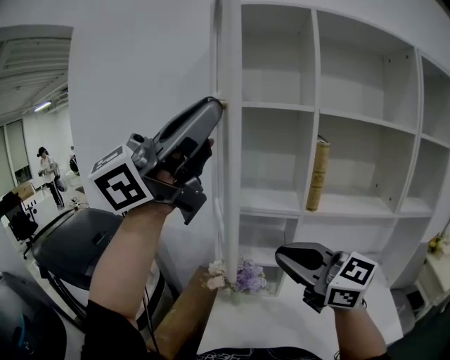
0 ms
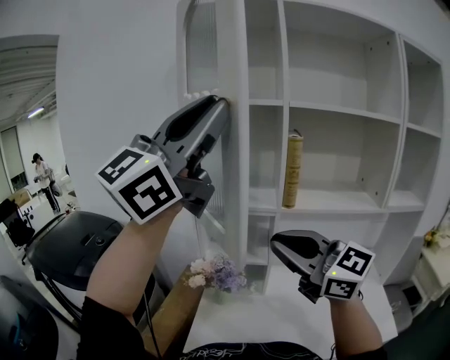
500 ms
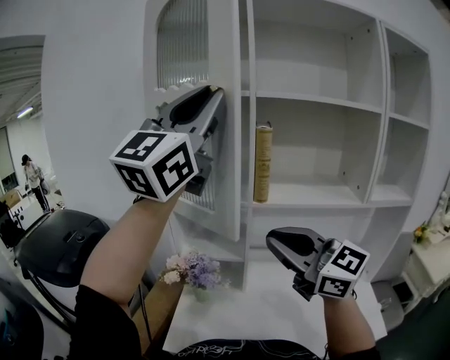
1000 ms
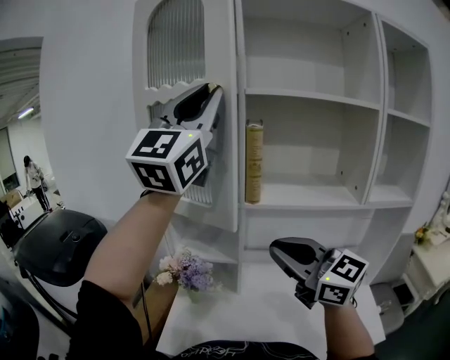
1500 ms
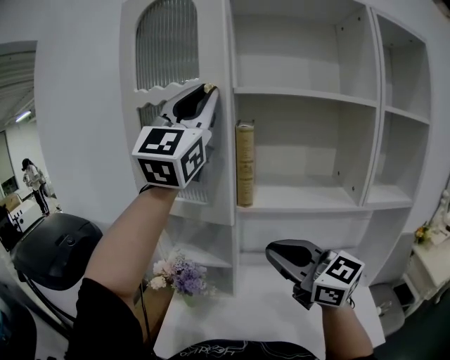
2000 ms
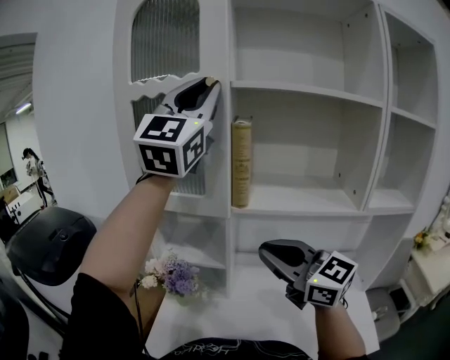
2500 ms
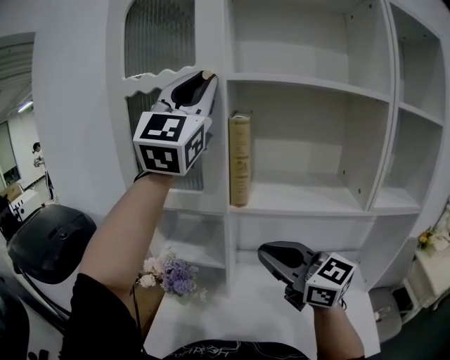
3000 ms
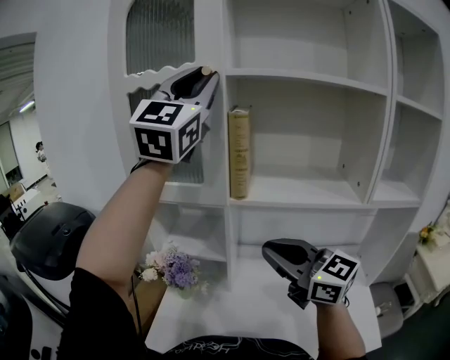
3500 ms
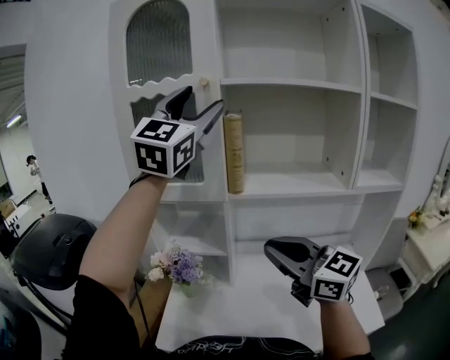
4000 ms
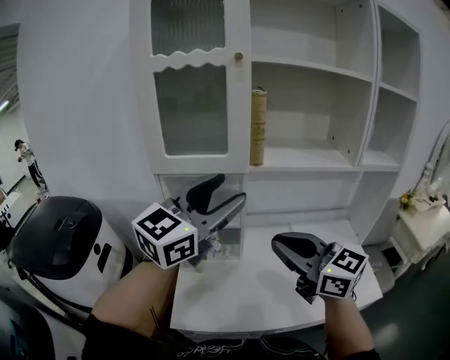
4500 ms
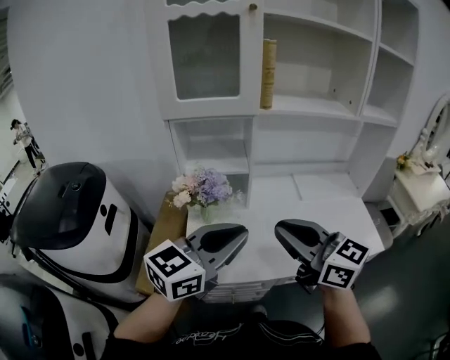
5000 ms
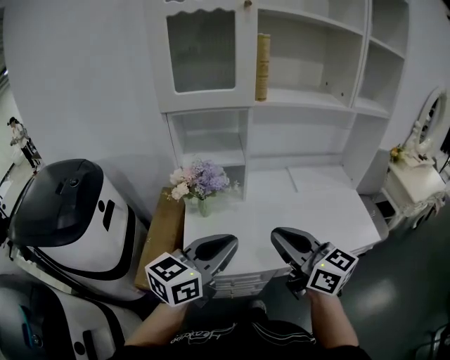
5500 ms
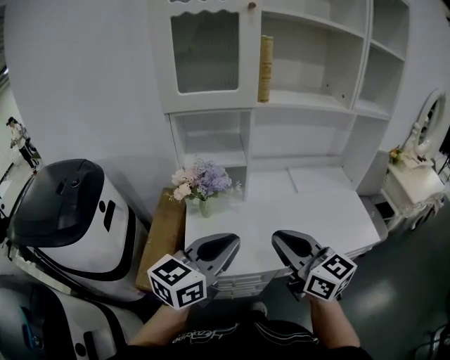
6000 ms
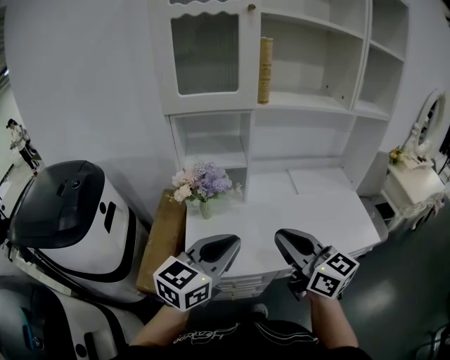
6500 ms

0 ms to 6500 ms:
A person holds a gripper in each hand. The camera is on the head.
0 ms to 2000 ms: The left gripper moves some 25 cm, and rotates roughly 50 degrees; the right gripper changes place by some 20 cm.
2000 ms to 4500 ms: The right gripper shifts some 10 cm to the left and backward; the left gripper shifts approximately 25 cm downward and backward, rotates approximately 40 degrees, and opens its fingers.
4500 ms to 6500 ms: The right gripper is displaced backward and downward by approximately 20 cm; the left gripper moves downward and backward, about 30 cm, swivels about 20 degrees, and closes up.

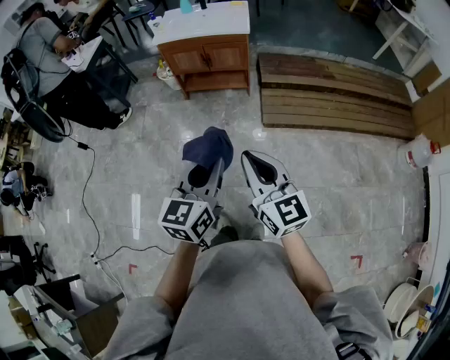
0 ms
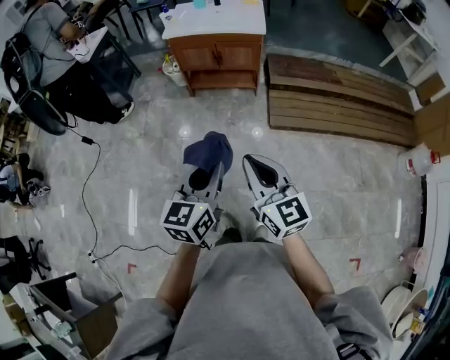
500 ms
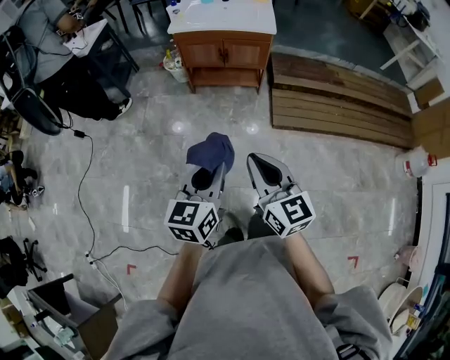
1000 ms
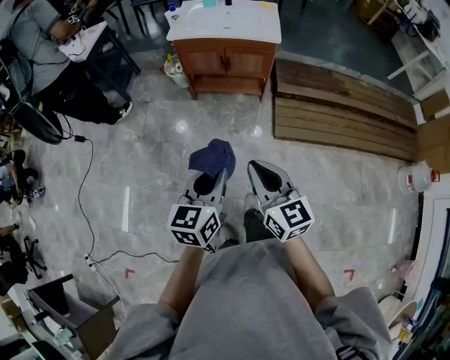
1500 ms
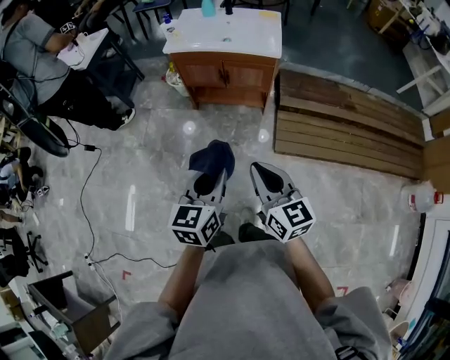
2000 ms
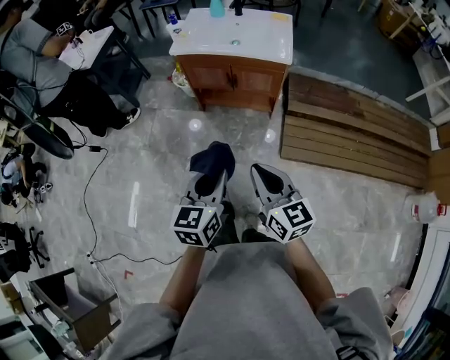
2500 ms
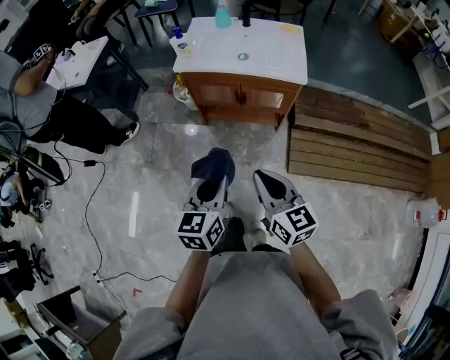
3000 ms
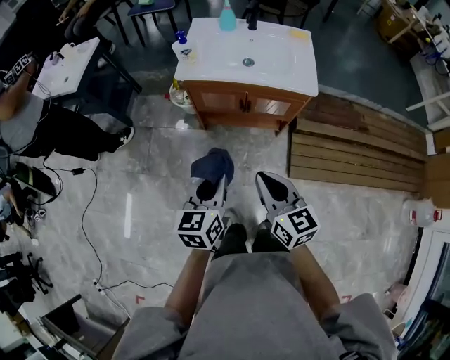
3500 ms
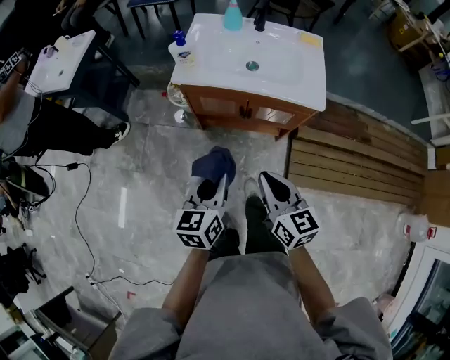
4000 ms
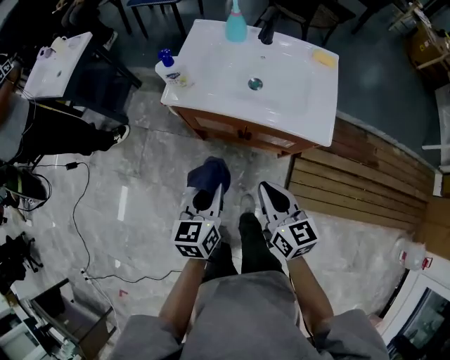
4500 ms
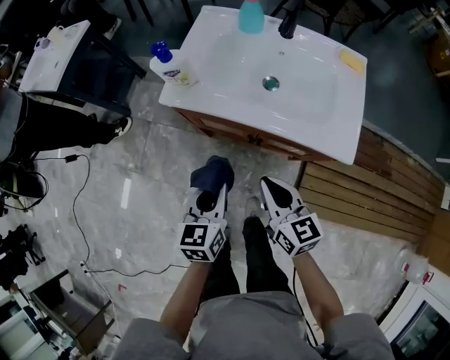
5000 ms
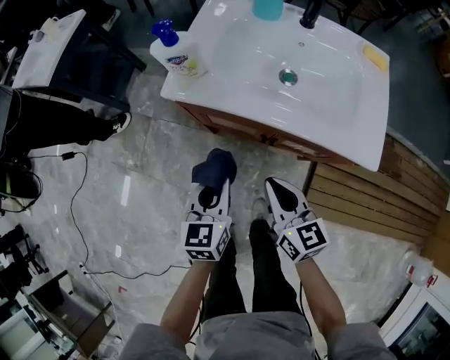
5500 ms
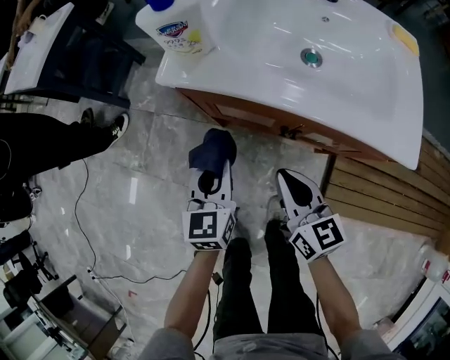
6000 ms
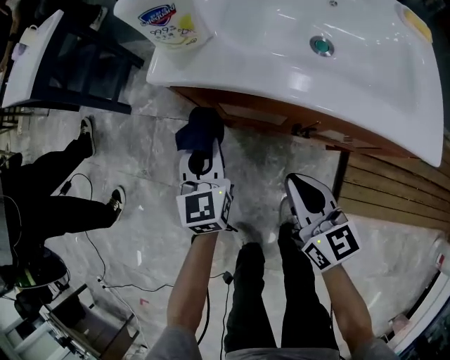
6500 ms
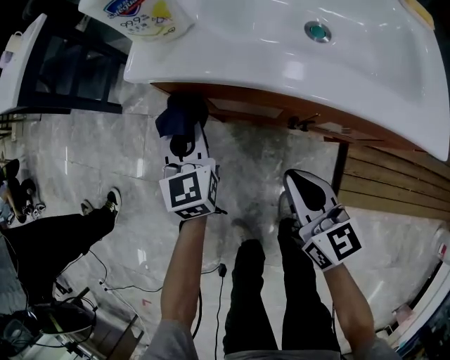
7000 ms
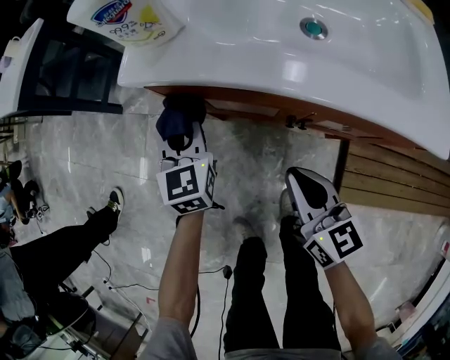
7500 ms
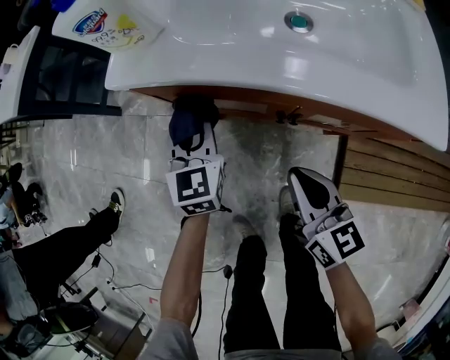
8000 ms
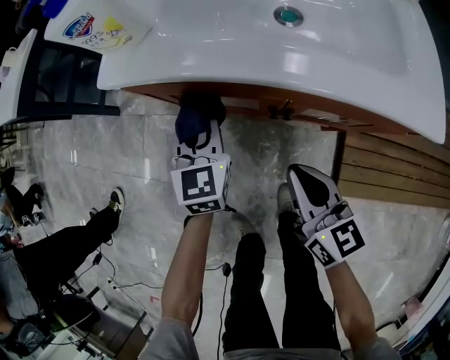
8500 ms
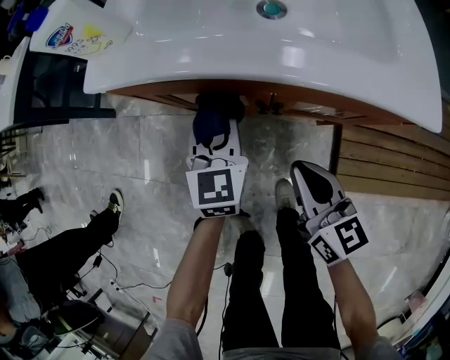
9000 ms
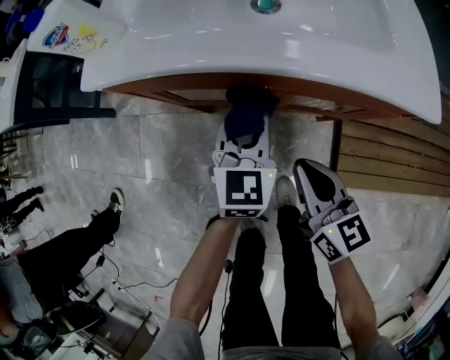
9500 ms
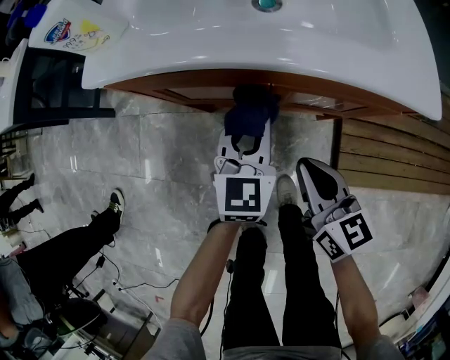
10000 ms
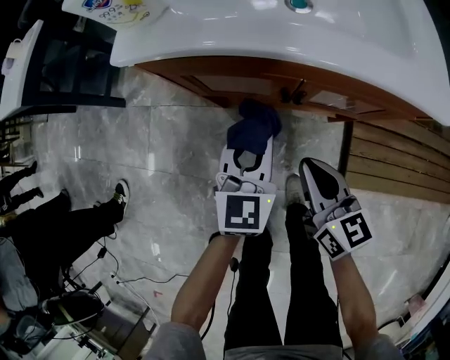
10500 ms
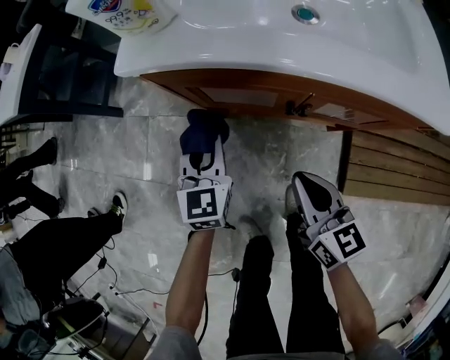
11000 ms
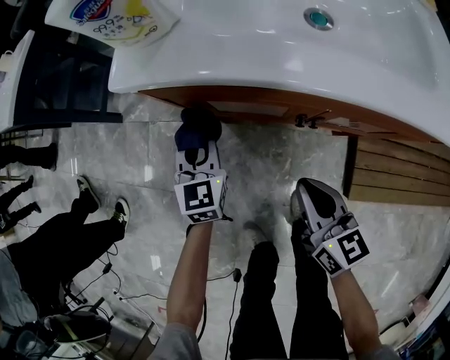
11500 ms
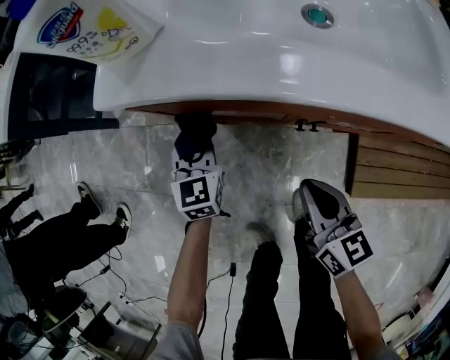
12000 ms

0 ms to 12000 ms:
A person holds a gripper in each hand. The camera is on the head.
0 ms to 2000 ms: Both grippers move forward, approximately 25 cm.
2000 ms to 4000 ms: The two grippers go some 35 cm forward.
4000 ms to 6000 ms: The grippers both shift downward and forward by roughly 30 cm.
6000 ms to 8000 ms: The right gripper moves downward, about 5 cm, while the left gripper is displaced forward and downward by approximately 10 cm.
8000 ms to 10000 ms: The right gripper is displaced to the right by about 5 cm, while the left gripper shifts approximately 20 cm to the right and backward.
10000 ms to 12000 ms: The right gripper heads to the left, covering approximately 5 cm. The left gripper is displaced to the left, downward and forward by approximately 25 cm.

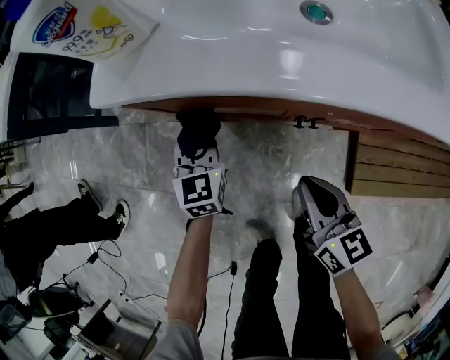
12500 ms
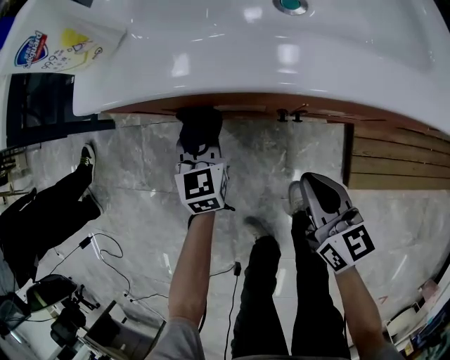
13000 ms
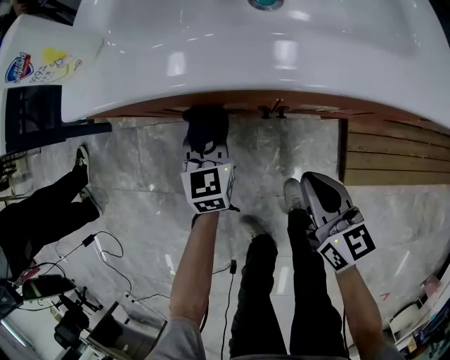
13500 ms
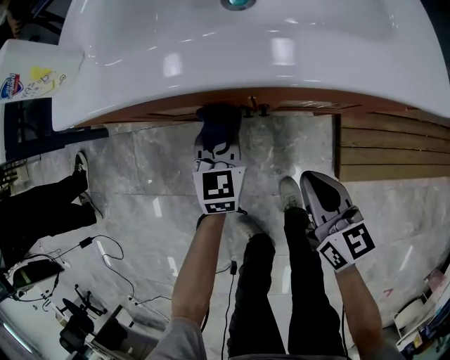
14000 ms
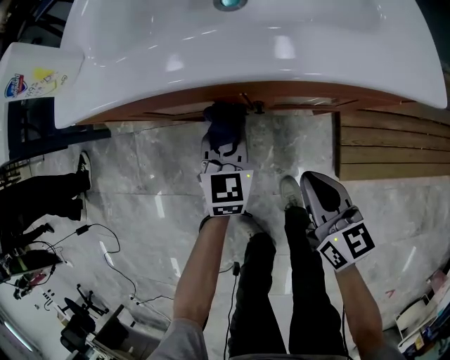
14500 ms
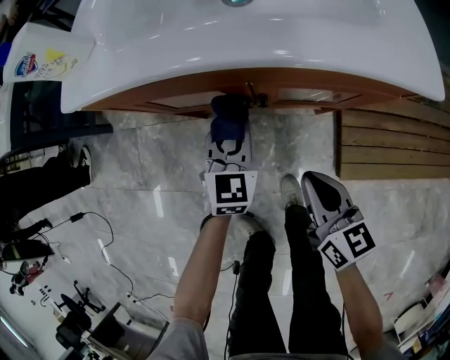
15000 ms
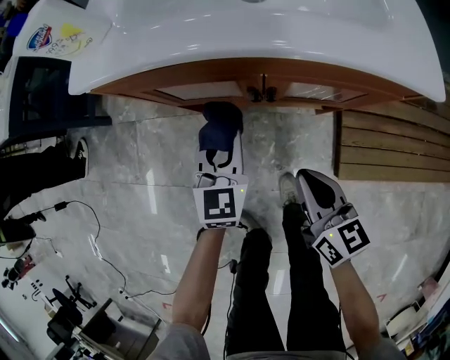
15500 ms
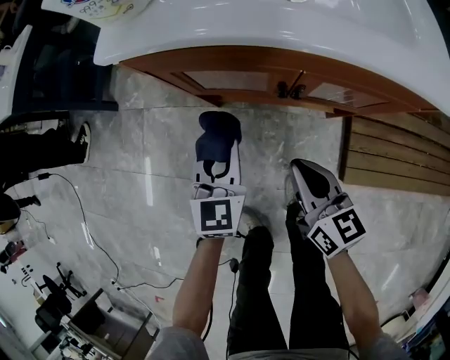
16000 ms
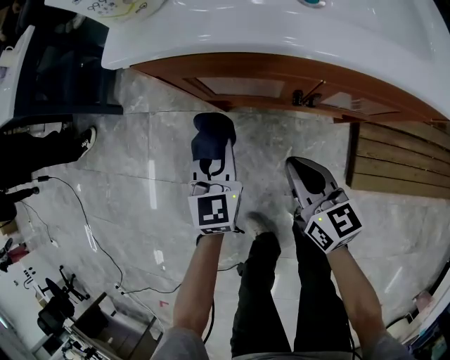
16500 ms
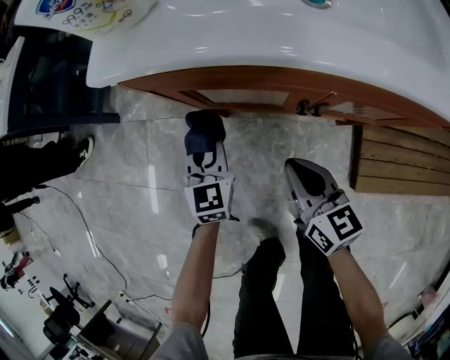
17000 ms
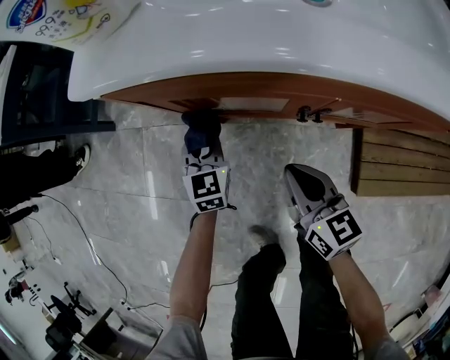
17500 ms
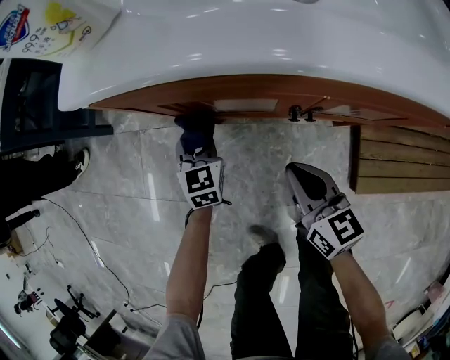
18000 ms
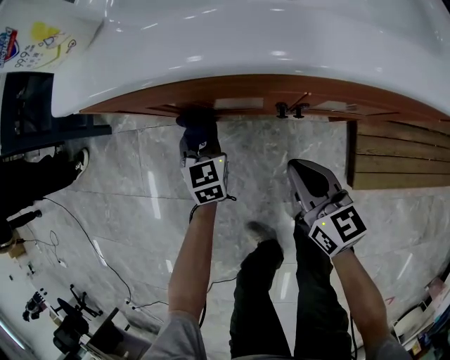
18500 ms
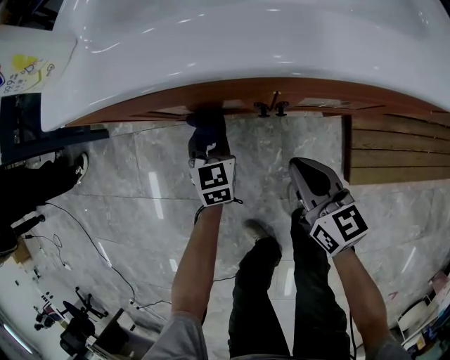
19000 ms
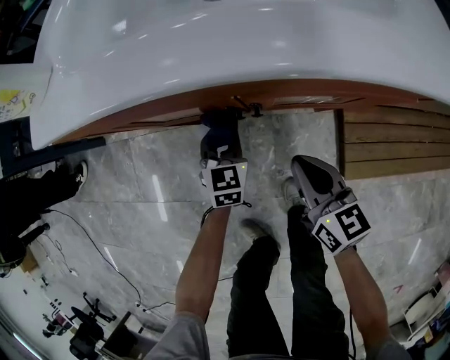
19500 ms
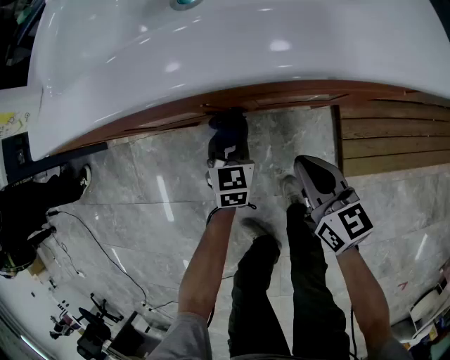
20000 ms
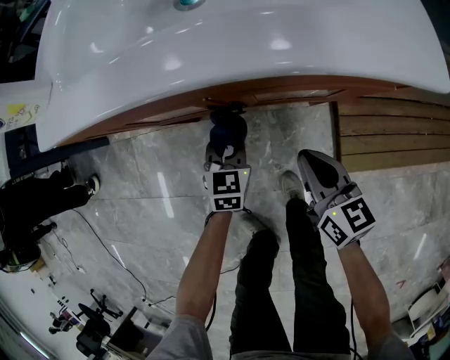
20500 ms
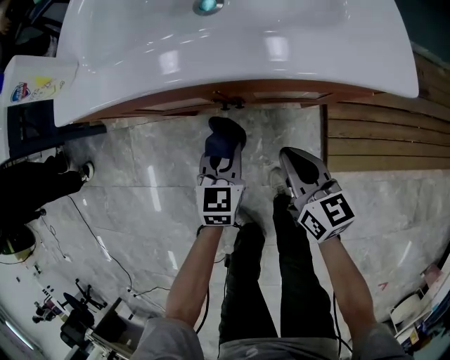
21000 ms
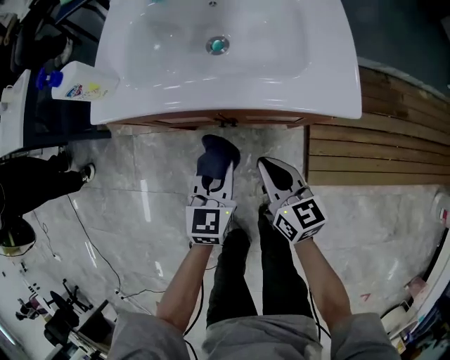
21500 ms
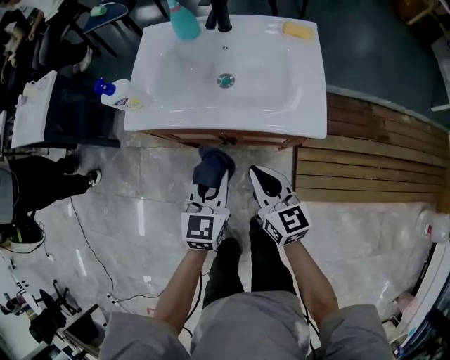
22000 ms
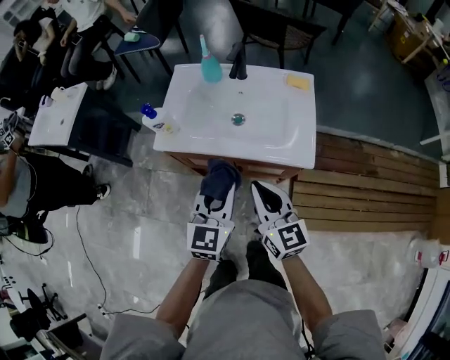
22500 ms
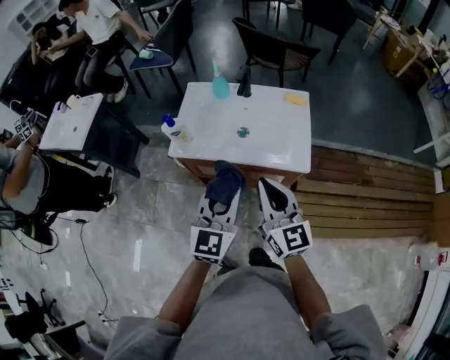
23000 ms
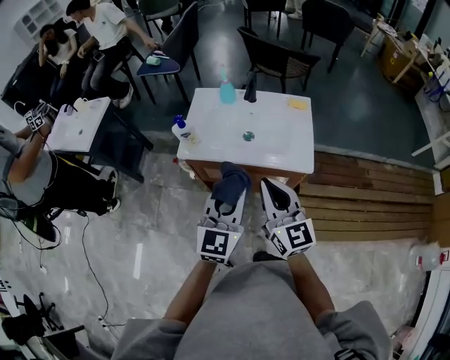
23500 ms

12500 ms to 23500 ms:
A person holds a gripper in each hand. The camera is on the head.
12500 ms to 14500 ms: The left gripper heads to the right, covering approximately 20 cm. The right gripper moves to the right and backward, roughly 10 cm.
14500 ms to 16000 ms: The left gripper travels to the left and backward by roughly 15 cm; the right gripper is displaced to the left by roughly 10 cm.
16000 ms to 18000 ms: The right gripper heads downward and forward, covering about 10 cm. Meanwhile the left gripper moves downward and forward, about 20 cm.
18000 ms to 20000 ms: Both grippers travel together to the right, approximately 20 cm.
20000 ms to 21500 ms: The right gripper moves upward, approximately 15 cm. The left gripper shifts roughly 25 cm upward.
21500 ms to 23500 ms: The grippers both shift upward by some 40 cm. The left gripper turns by approximately 20 degrees. Meanwhile the right gripper swivels roughly 30 degrees.
